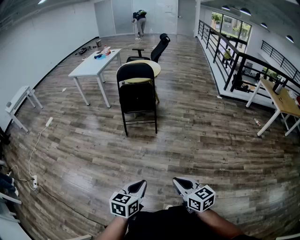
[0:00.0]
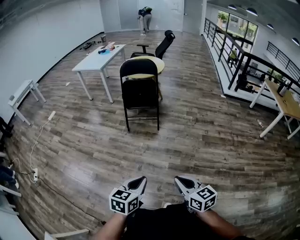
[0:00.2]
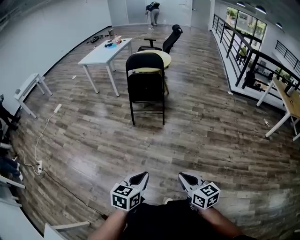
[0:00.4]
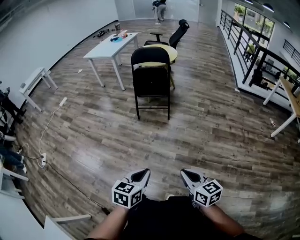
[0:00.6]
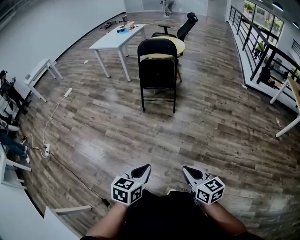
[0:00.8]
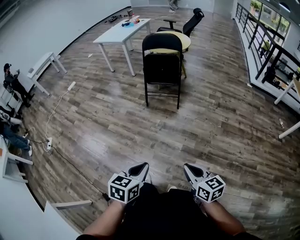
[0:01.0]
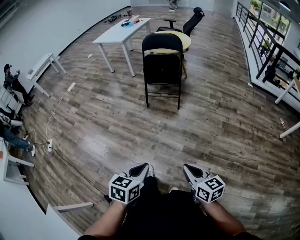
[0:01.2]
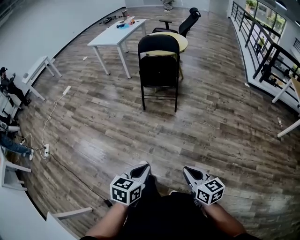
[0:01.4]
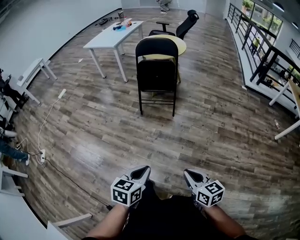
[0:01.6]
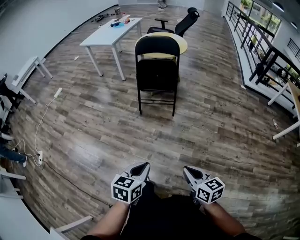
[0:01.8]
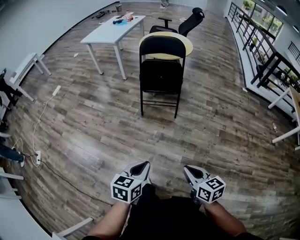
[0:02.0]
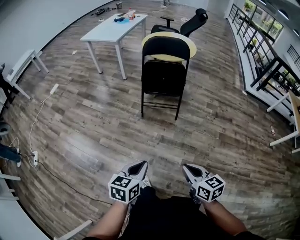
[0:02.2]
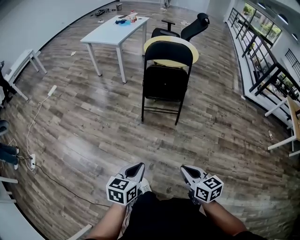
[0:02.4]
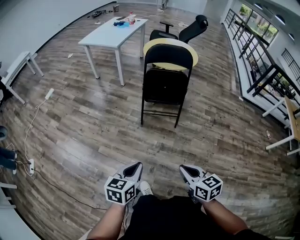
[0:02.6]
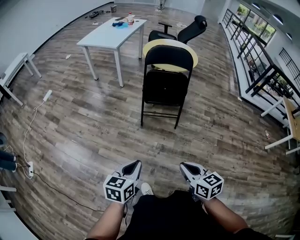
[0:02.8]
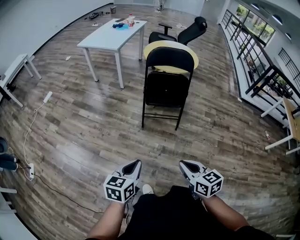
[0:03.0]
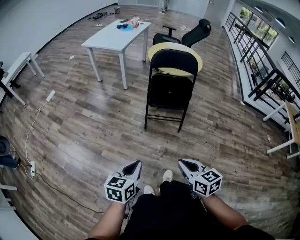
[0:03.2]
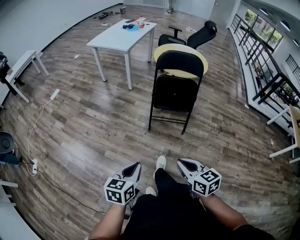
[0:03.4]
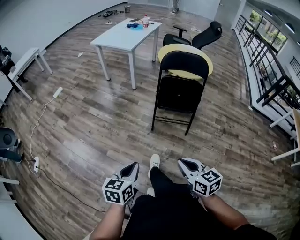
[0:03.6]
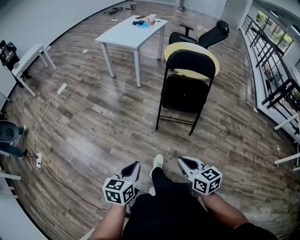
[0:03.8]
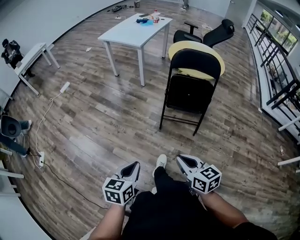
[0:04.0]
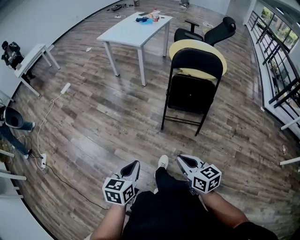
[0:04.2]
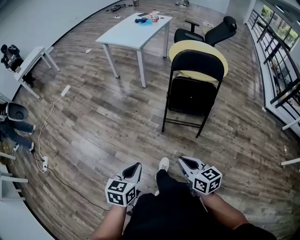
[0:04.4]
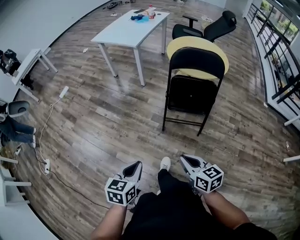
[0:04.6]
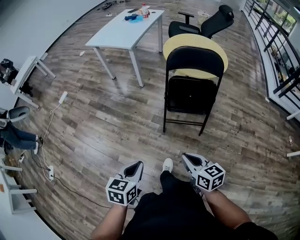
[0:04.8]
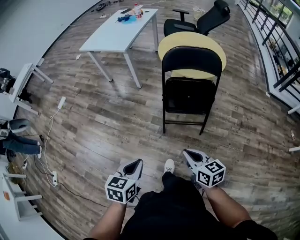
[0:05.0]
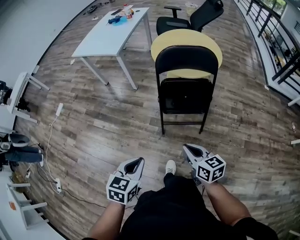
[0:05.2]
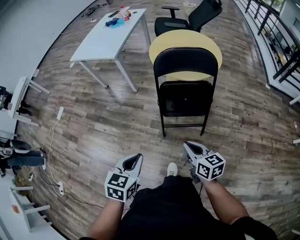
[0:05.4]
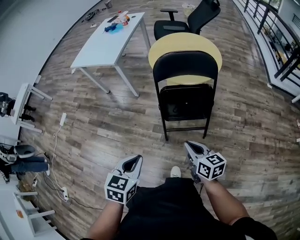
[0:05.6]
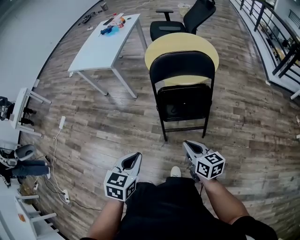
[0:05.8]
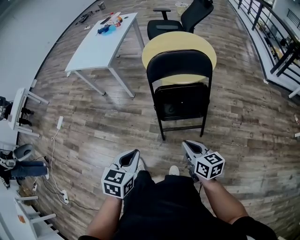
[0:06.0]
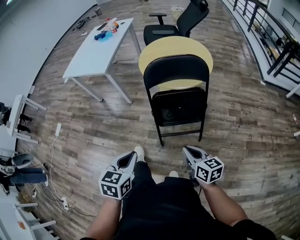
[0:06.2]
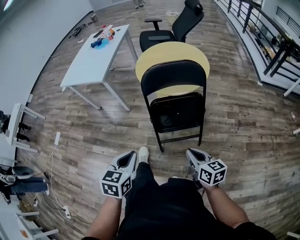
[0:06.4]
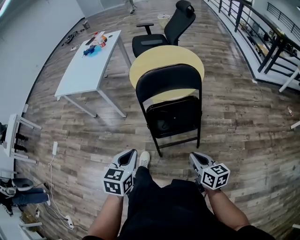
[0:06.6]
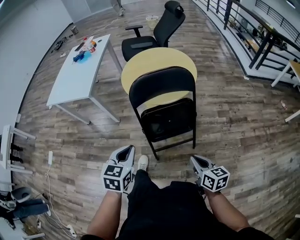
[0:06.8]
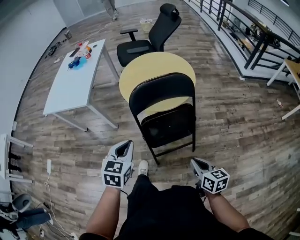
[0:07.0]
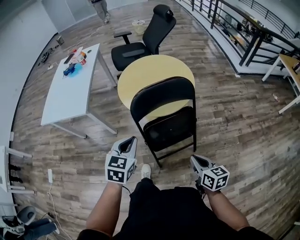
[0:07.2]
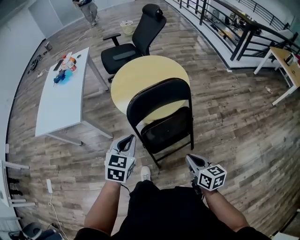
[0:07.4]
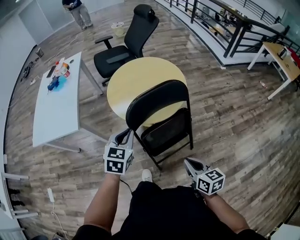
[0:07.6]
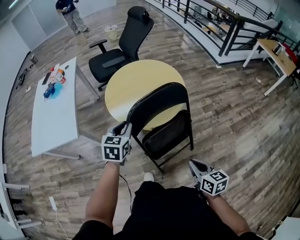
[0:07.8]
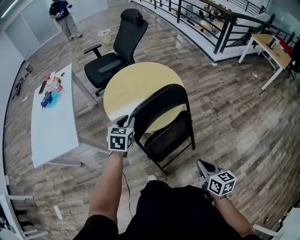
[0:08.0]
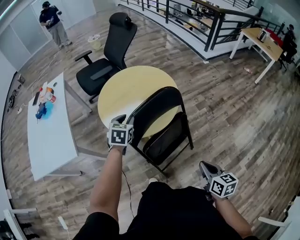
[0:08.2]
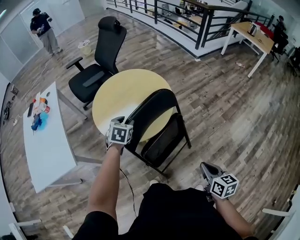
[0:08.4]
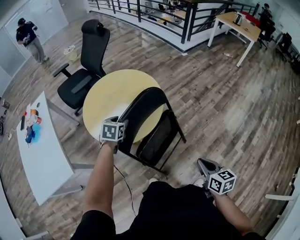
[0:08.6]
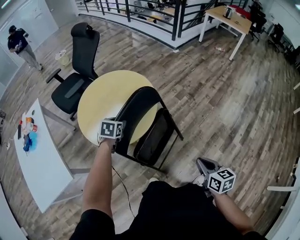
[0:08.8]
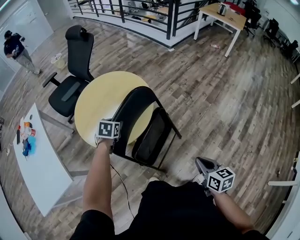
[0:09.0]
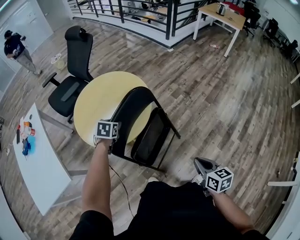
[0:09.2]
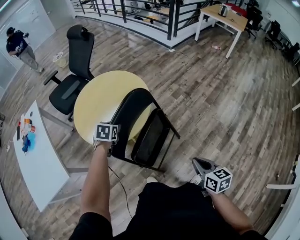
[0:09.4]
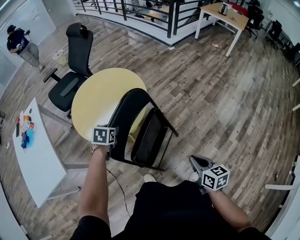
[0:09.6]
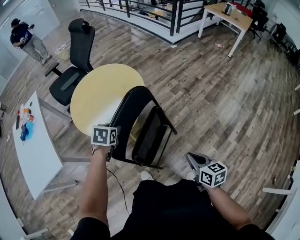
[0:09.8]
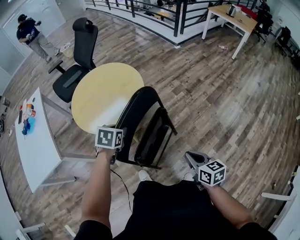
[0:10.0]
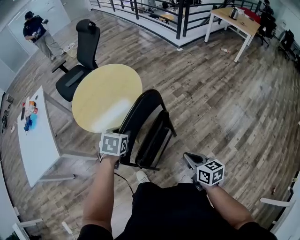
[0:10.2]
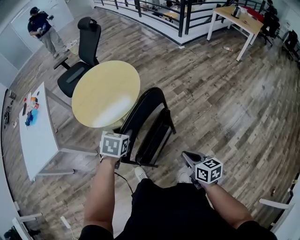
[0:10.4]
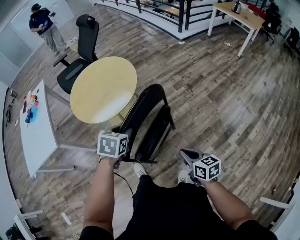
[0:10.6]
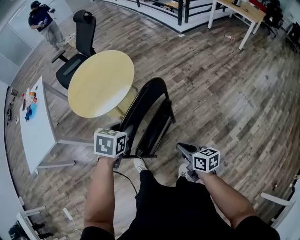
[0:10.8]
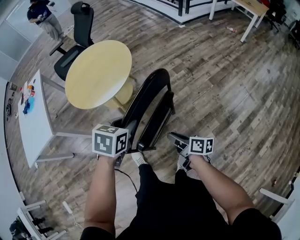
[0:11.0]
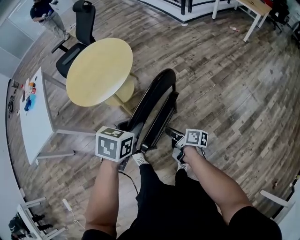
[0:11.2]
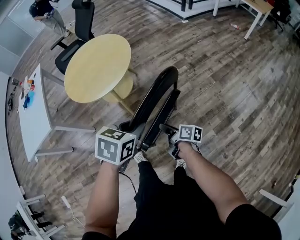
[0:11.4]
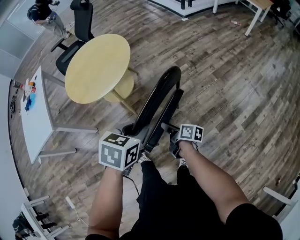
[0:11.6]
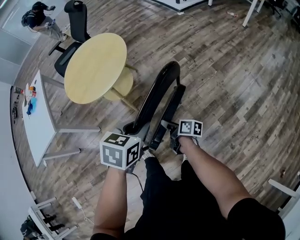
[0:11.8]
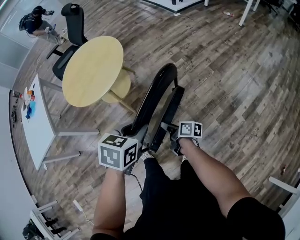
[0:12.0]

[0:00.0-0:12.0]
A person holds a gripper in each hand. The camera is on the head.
0.0 to 1.6 s: The right gripper shifts some 10 cm forward and downward, while the left gripper heads forward, covering roughly 10 cm.
1.6 to 3.0 s: The two grippers go approximately 35 cm forward and to the left.
3.0 to 4.4 s: The right gripper moves forward, roughly 15 cm. Meanwhile the left gripper shifts roughly 15 cm forward and to the left.
4.4 to 6.0 s: The left gripper moves forward, approximately 25 cm, and rotates roughly 20 degrees. The right gripper travels forward and to the right by some 25 cm.
6.0 to 7.6 s: The right gripper ends up some 15 cm from where it was, and changes its angle by some 30 degrees; the left gripper moves about 40 cm, and swivels approximately 30 degrees.
7.6 to 9.0 s: The right gripper moves approximately 5 cm, and swivels approximately 30 degrees. The left gripper moves roughly 25 cm, swivels roughly 30 degrees, and opens its fingers.
9.0 to 10.4 s: The left gripper shifts about 25 cm backward and to the right, while the right gripper moves to the right, about 10 cm.
10.4 to 12.0 s: The left gripper shifts roughly 20 cm to the right and backward; the right gripper is displaced downward by some 15 cm, rotates around the line of its fingers by approximately 40 degrees, clockwise from behind, and opens up.

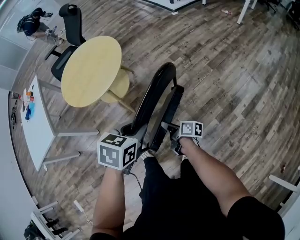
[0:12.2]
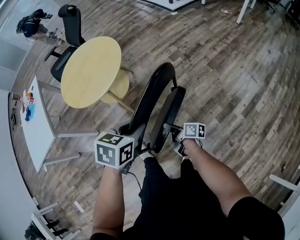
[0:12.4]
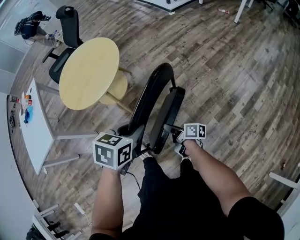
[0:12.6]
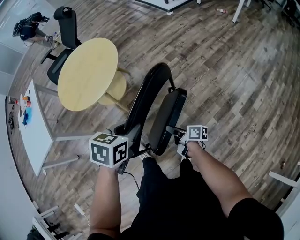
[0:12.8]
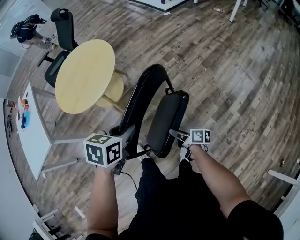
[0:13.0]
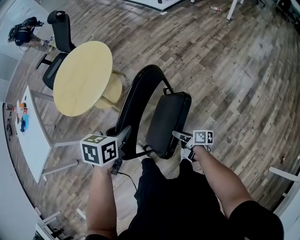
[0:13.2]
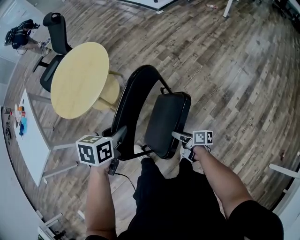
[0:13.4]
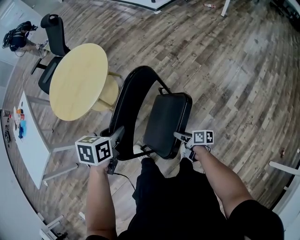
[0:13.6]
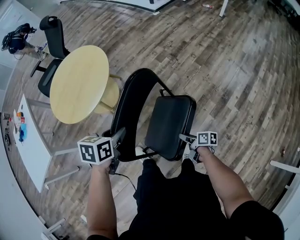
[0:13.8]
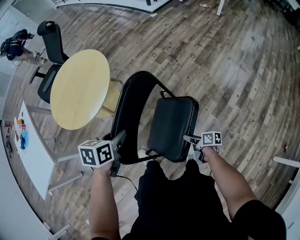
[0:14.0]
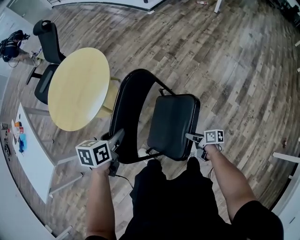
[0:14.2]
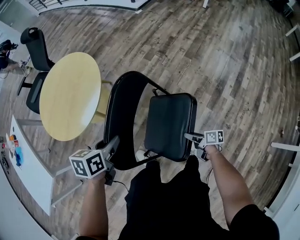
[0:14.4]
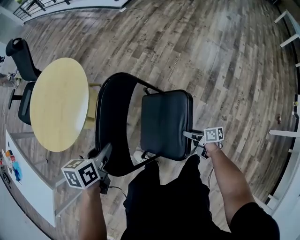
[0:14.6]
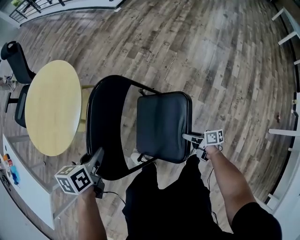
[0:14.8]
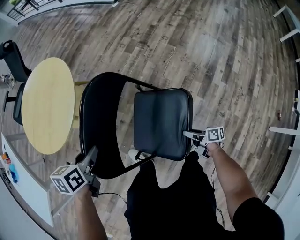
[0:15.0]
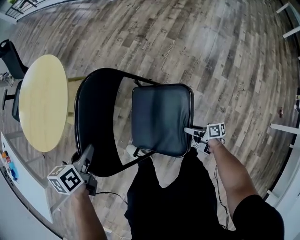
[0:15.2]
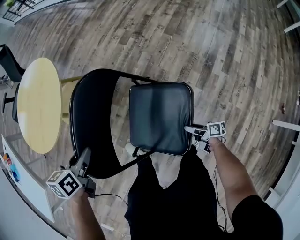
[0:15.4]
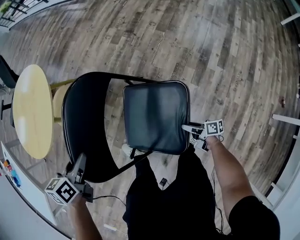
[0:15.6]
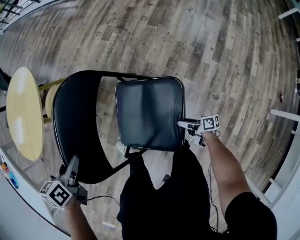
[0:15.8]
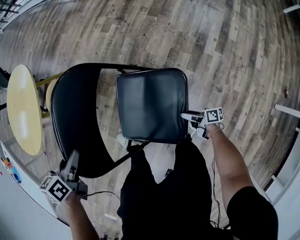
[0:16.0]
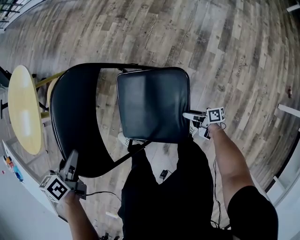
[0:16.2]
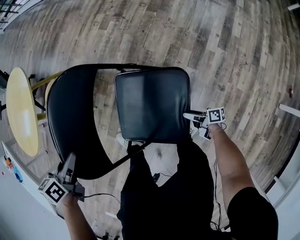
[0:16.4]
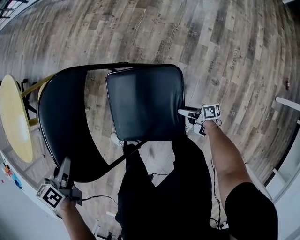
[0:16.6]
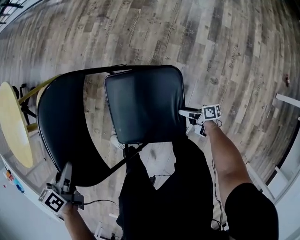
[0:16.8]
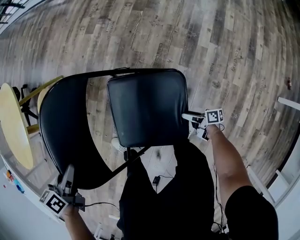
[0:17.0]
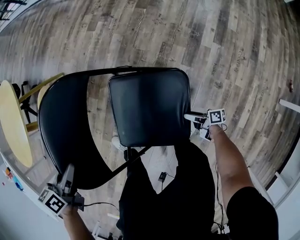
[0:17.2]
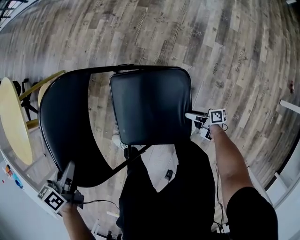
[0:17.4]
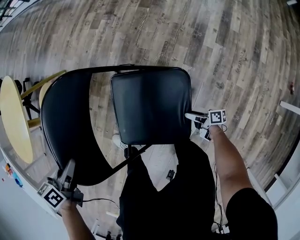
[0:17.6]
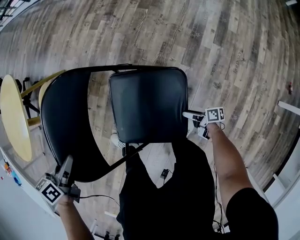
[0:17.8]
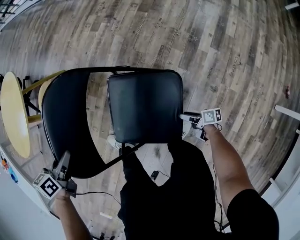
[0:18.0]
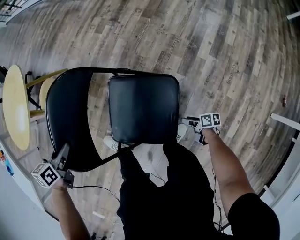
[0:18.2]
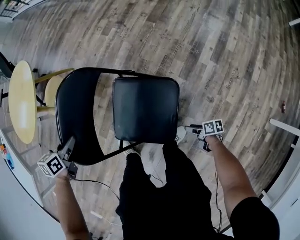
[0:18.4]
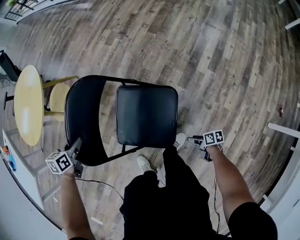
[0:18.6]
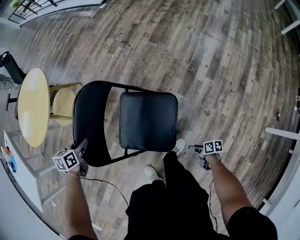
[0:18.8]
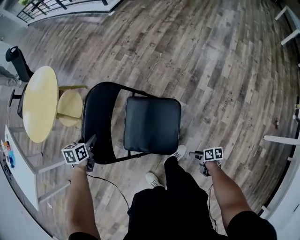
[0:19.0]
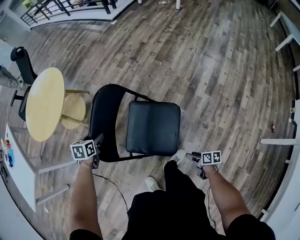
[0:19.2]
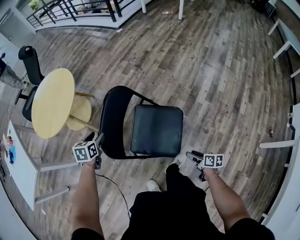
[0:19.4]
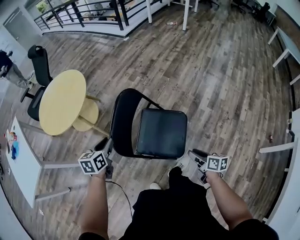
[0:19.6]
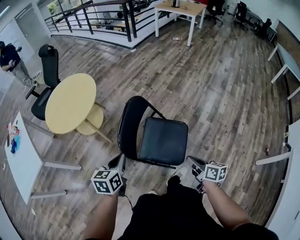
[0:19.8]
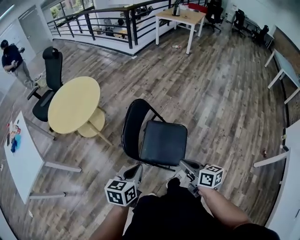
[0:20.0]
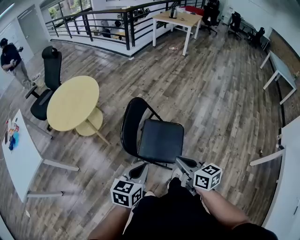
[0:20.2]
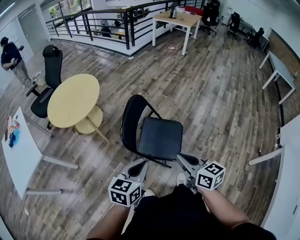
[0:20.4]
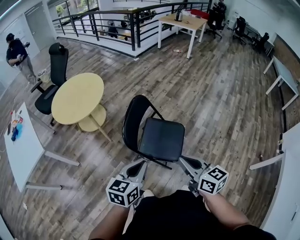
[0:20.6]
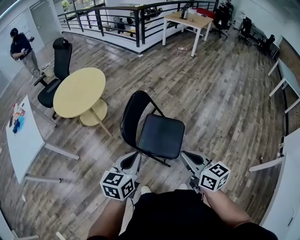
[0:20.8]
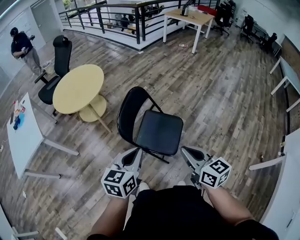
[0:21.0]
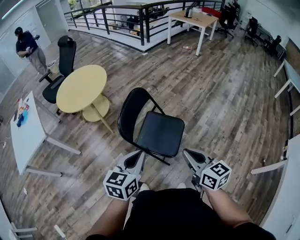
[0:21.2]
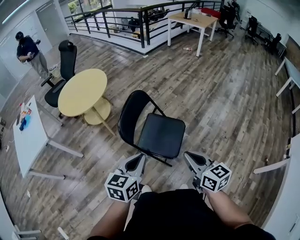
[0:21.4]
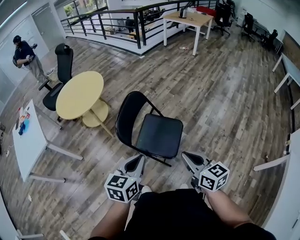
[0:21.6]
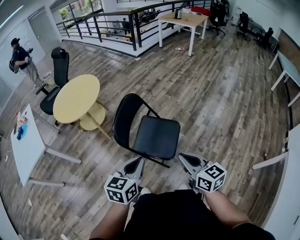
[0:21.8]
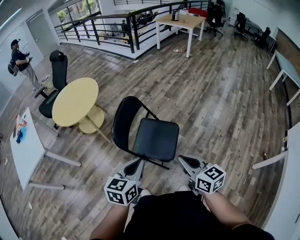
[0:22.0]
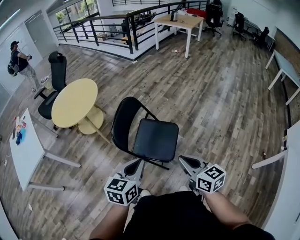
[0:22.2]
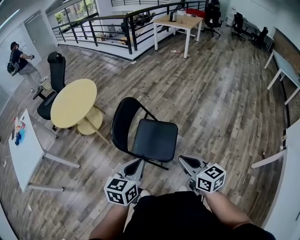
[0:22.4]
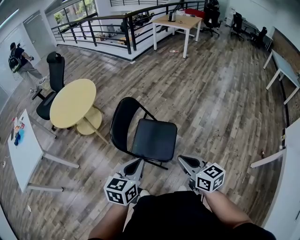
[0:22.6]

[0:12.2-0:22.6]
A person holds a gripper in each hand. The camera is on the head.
12.2 to 13.6 s: The right gripper shifts roughly 10 cm to the right, downward and backward, and opens its fingers. The left gripper moves to the left and forward, about 10 cm.
13.6 to 15.2 s: The right gripper moves downward, to the right and backward, approximately 15 cm. The left gripper is displaced downward and to the left by about 10 cm.
15.2 to 16.6 s: The left gripper shifts some 10 cm to the right and downward. The right gripper shifts approximately 20 cm downward, to the right and backward.
16.6 to 18.2 s: The right gripper travels to the right by approximately 5 cm, and swivels approximately 20 degrees.
18.2 to 19.6 s: The left gripper heads upward and backward, covering about 15 cm, and opens, then closes once more. Meanwhile the right gripper moves upward, some 40 cm, and changes its angle by some 30 degrees.
19.6 to 21.2 s: The right gripper shifts about 30 cm upward and backward, turns by about 40 degrees, and closes up; the left gripper moves backward, upward and to the right, roughly 35 cm, and closes up.
21.2 to 22.6 s: The grippers move only a little.

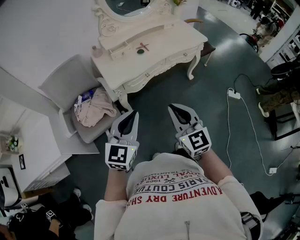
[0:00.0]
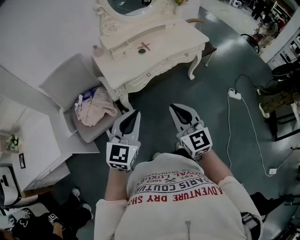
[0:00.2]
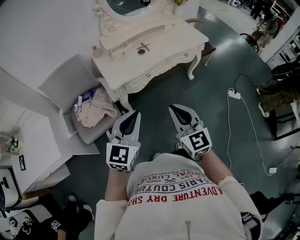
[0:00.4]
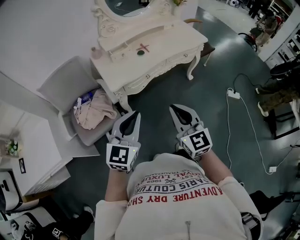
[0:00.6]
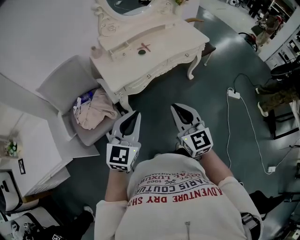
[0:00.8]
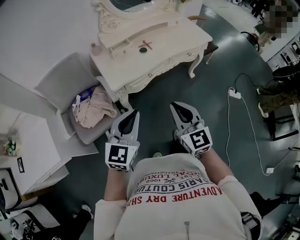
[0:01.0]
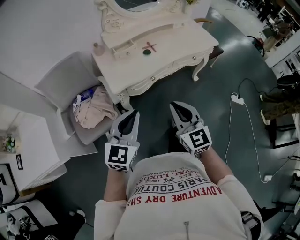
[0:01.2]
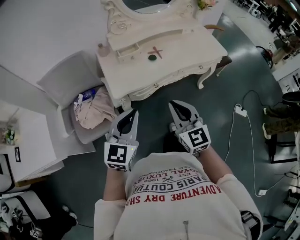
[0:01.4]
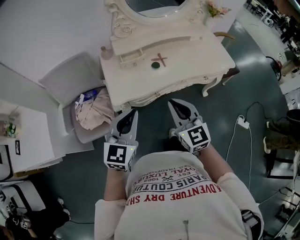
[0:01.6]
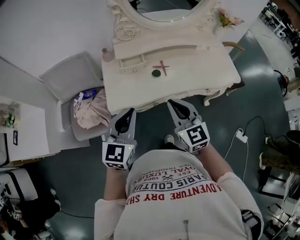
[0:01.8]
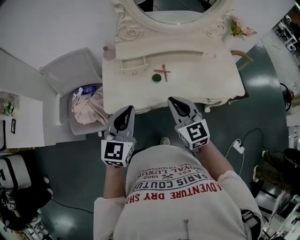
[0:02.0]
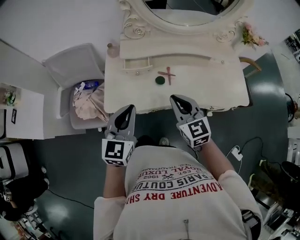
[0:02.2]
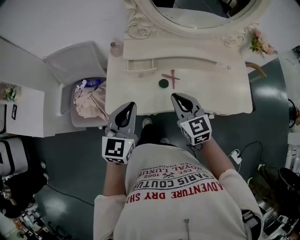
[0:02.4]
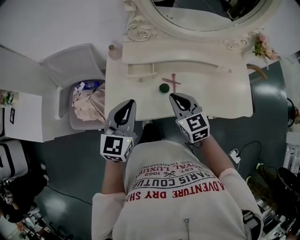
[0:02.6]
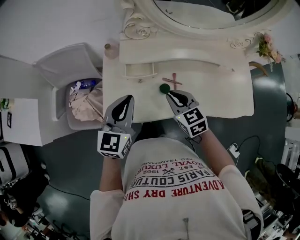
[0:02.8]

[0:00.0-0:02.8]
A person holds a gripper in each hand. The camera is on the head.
0.0 to 1.4 s: The two grippers go about 15 cm forward.
1.4 to 2.8 s: The left gripper changes place by about 35 cm, and swivels about 30 degrees; the right gripper changes place by approximately 40 cm, and swivels approximately 40 degrees.
